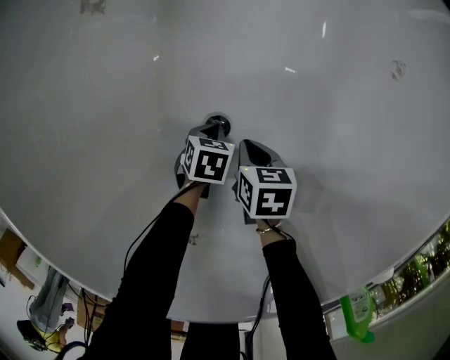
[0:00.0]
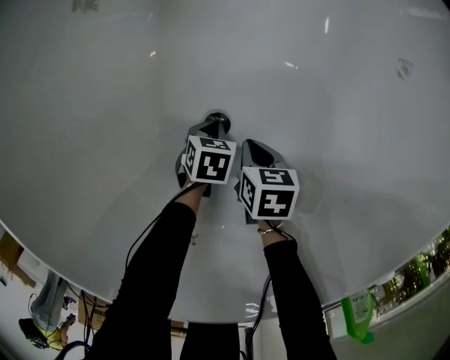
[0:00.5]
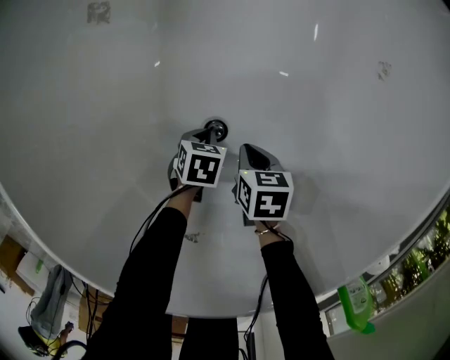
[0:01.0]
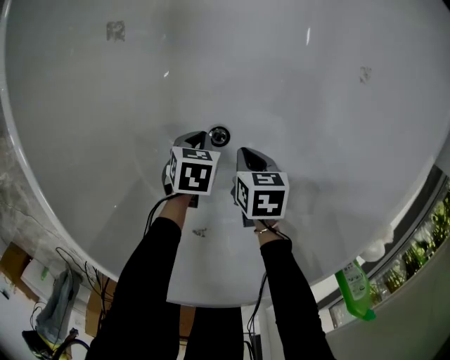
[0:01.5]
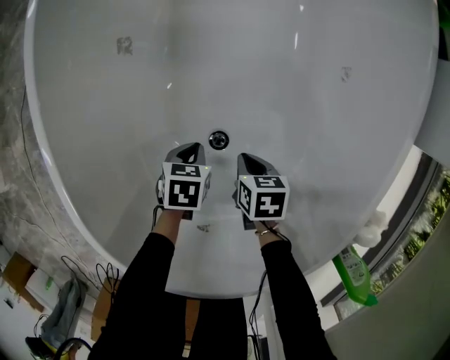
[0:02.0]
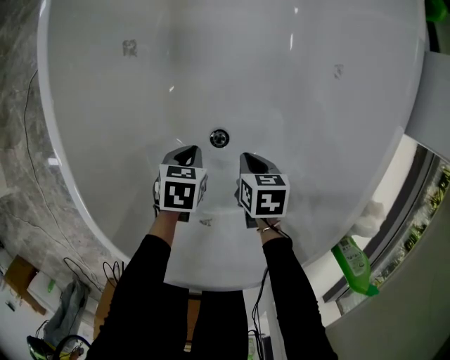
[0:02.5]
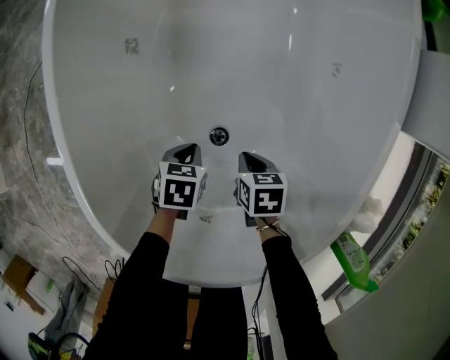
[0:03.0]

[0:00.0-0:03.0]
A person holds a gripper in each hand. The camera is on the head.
0:00.0 to 0:01.5: The left gripper moves upward, about 10 cm. Meanwhile the right gripper is displaced upward by roughly 5 cm.
0:01.5 to 0:03.0: The left gripper moves upward, about 10 cm, while the right gripper goes approximately 5 cm upward.

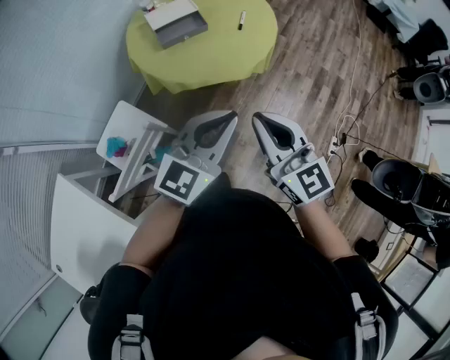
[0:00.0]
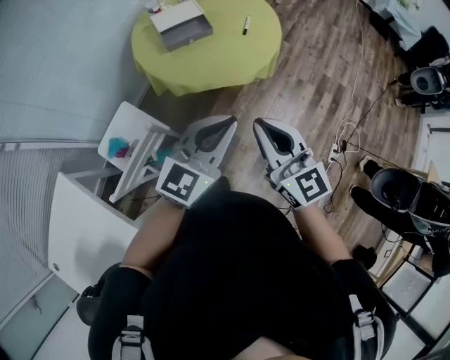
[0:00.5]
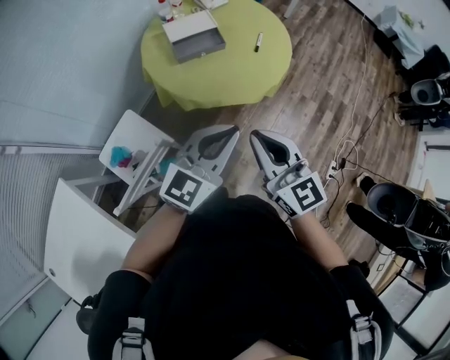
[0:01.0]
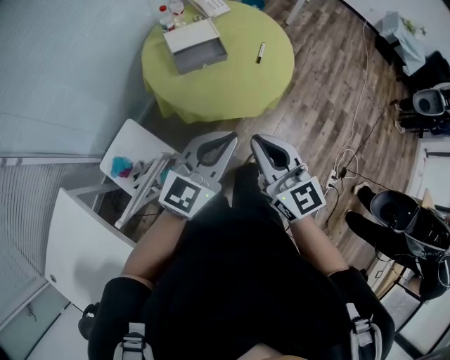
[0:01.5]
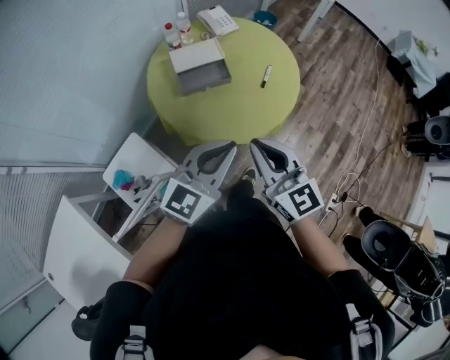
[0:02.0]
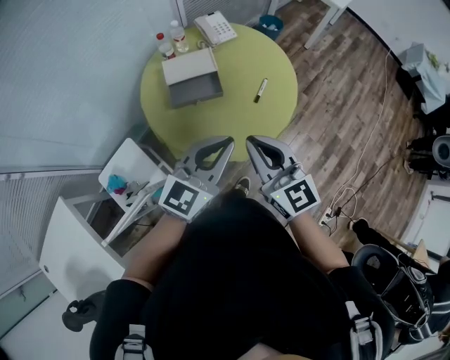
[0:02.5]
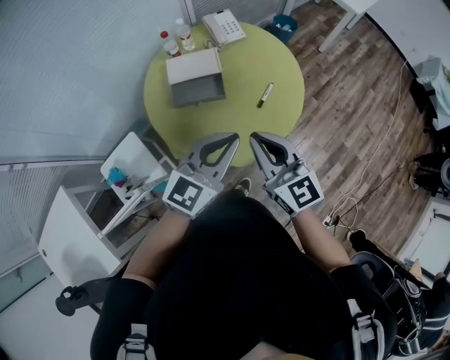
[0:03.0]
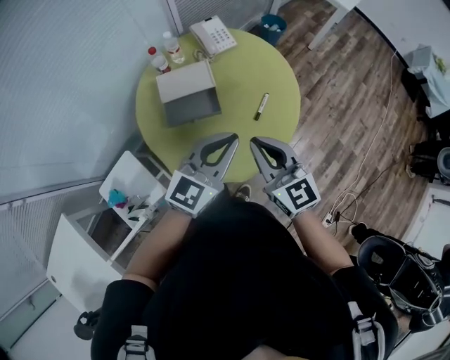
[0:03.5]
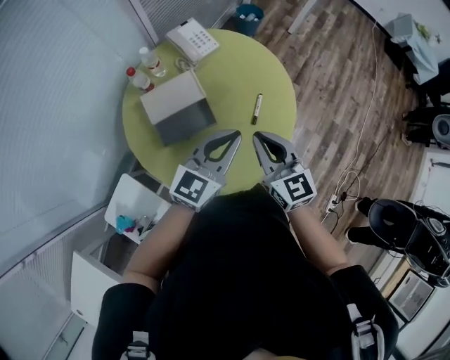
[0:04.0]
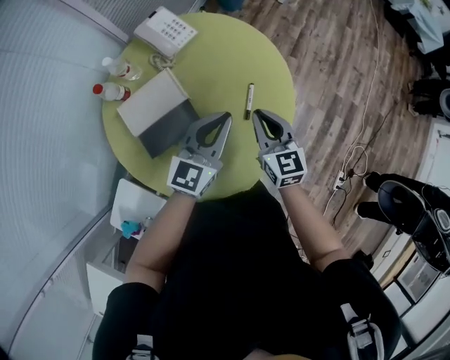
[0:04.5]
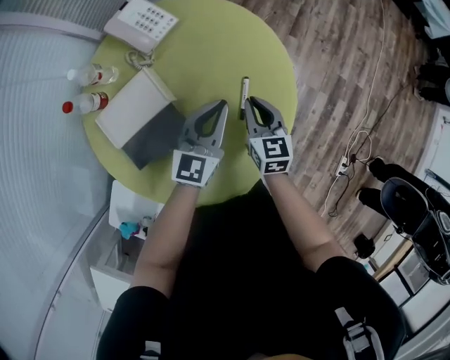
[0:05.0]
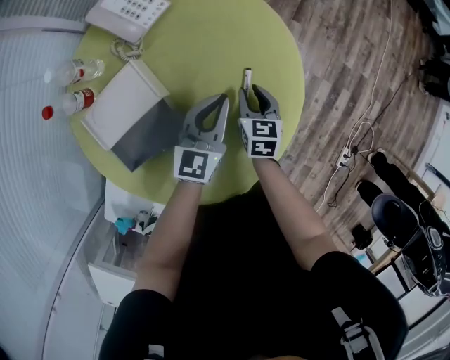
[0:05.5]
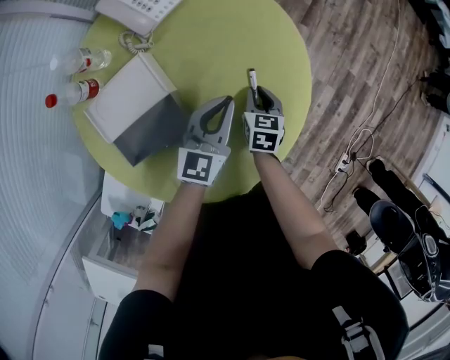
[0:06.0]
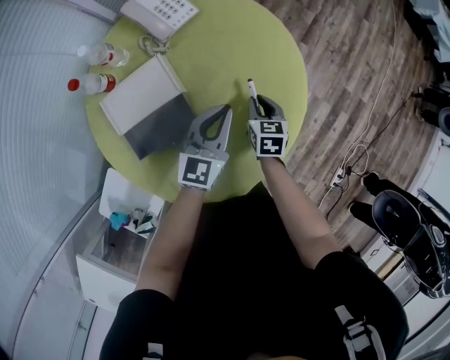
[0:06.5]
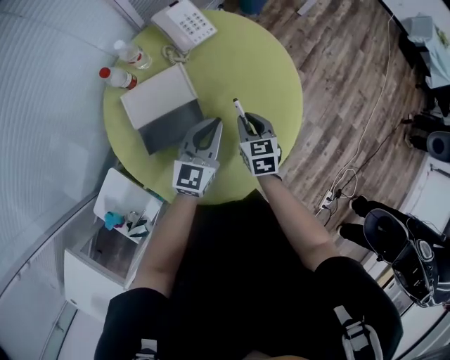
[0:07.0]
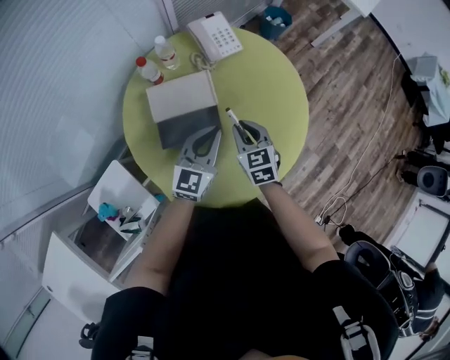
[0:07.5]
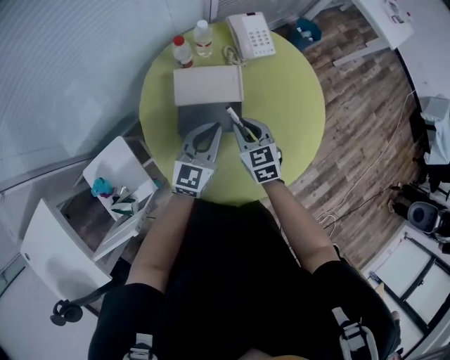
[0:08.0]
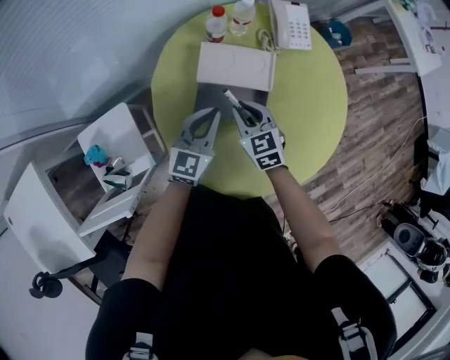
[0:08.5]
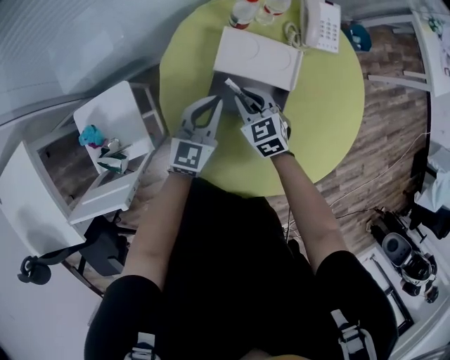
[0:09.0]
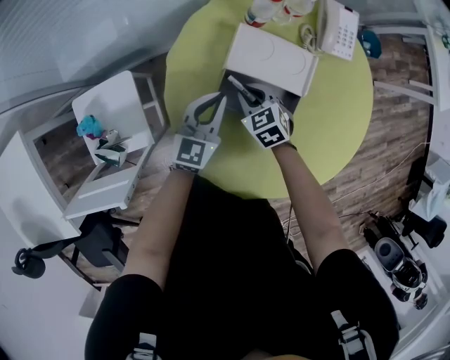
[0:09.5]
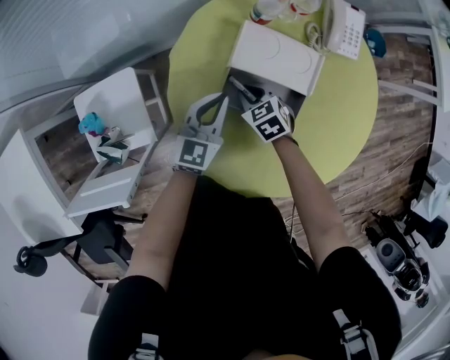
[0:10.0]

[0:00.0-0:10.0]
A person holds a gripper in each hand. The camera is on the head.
0:00.0 to 0:02.0: The two grippers go about 20 cm forward.
0:02.0 to 0:04.0: Both grippers move forward, about 30 cm.
0:04.0 to 0:06.0: The two grippers go roughly 35 cm downward and forward. The right gripper tilts its fingers some 30 degrees downward.
0:06.0 to 0:08.0: The right gripper moves roughly 30 cm, and rotates some 60 degrees, while the left gripper moves roughly 25 cm, and turns by some 20 degrees.
0:08.0 to 0:10.0: The right gripper goes roughly 20 cm downward, and rotates about 40 degrees. The left gripper ends up about 20 cm from where it was, and swivels about 20 degrees.

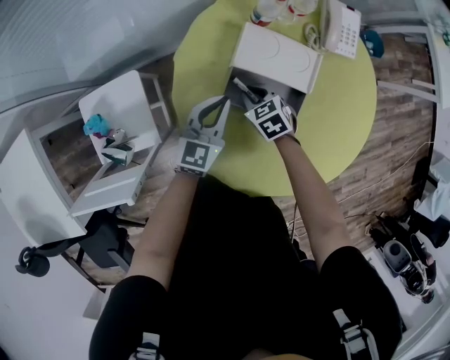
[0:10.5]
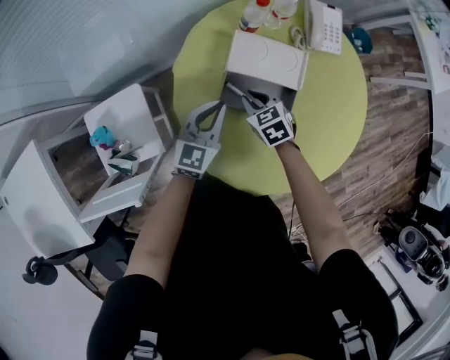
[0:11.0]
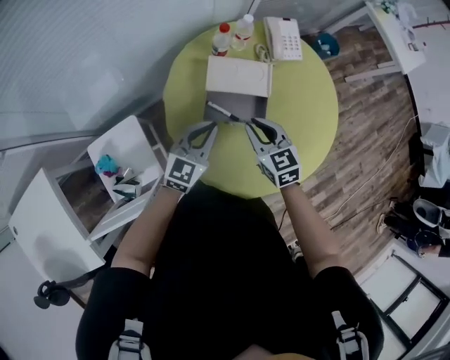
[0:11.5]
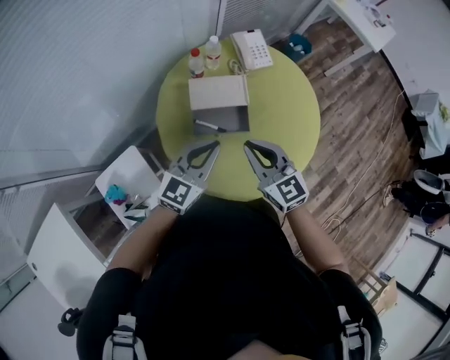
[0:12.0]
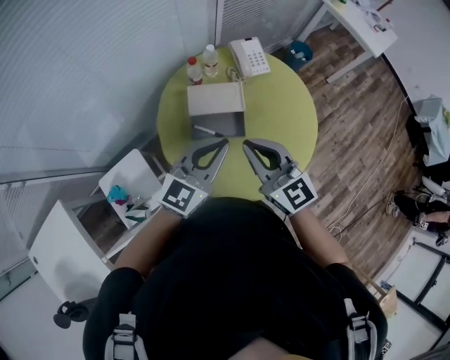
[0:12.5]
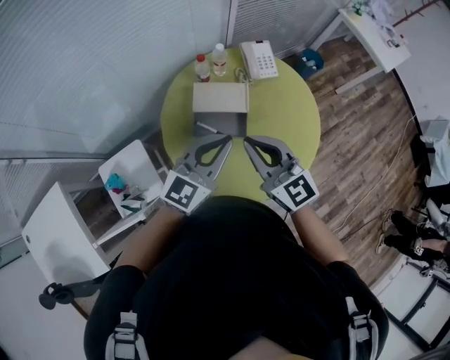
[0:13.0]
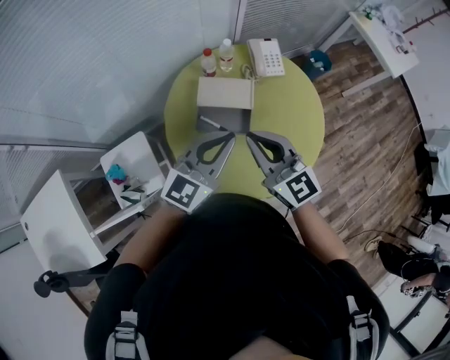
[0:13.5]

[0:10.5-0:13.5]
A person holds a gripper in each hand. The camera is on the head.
0:10.5 to 0:12.0: The left gripper is displaced upward by about 25 cm, and turns by roughly 30 degrees; the right gripper travels upward by some 35 cm, and points its fingers about 40 degrees further upward.
0:12.0 to 0:13.5: The left gripper travels upward and to the right by about 10 cm. Meanwhile the right gripper moves upward, some 10 cm.

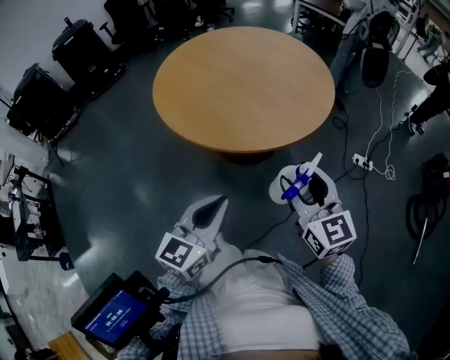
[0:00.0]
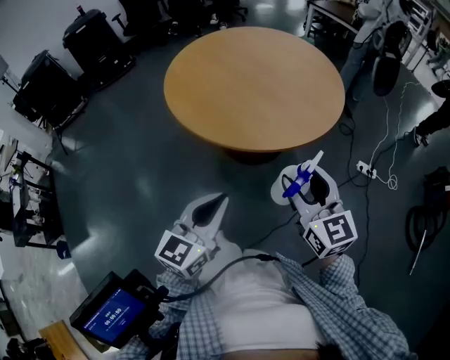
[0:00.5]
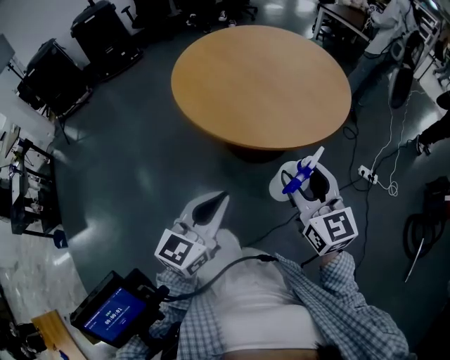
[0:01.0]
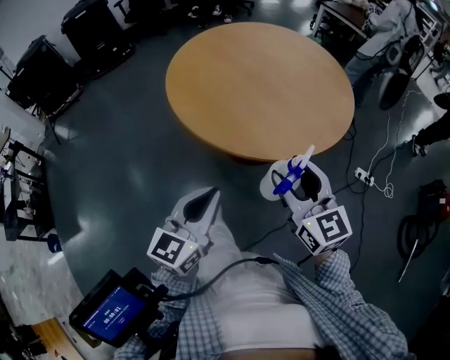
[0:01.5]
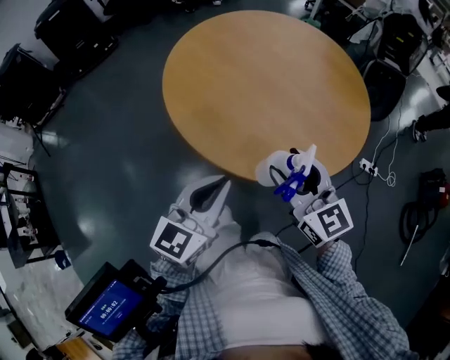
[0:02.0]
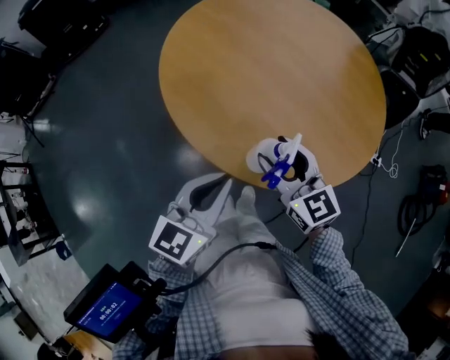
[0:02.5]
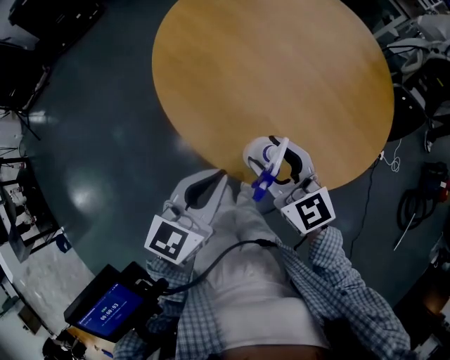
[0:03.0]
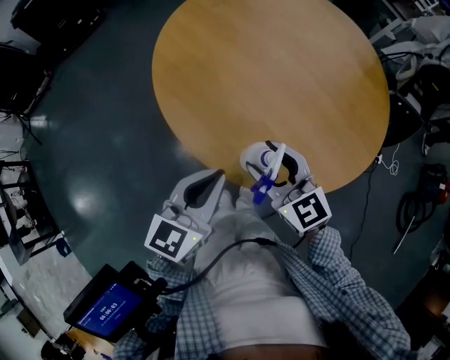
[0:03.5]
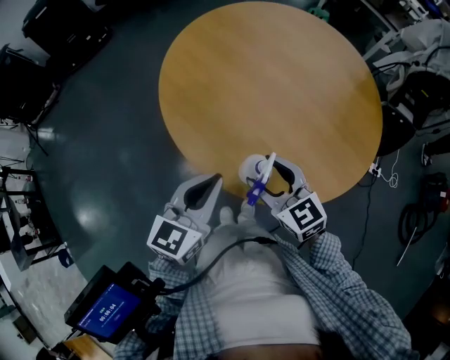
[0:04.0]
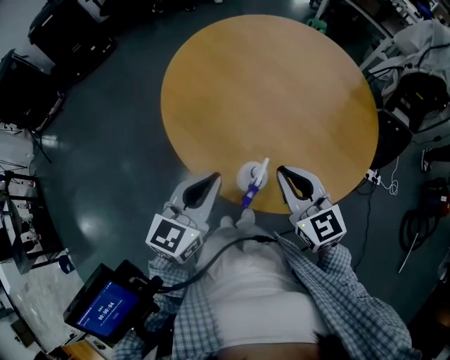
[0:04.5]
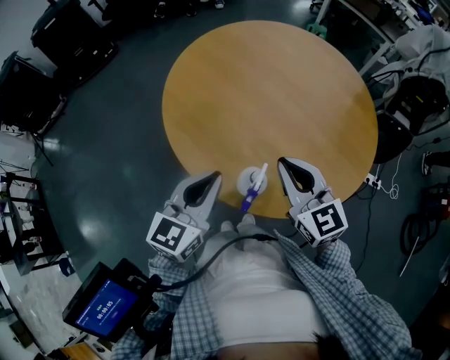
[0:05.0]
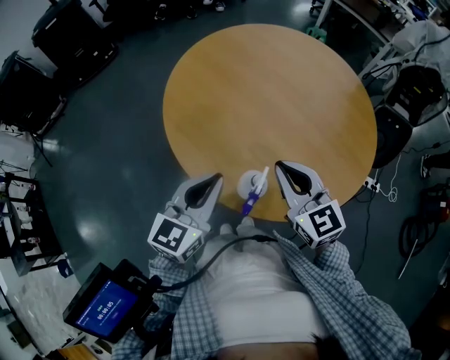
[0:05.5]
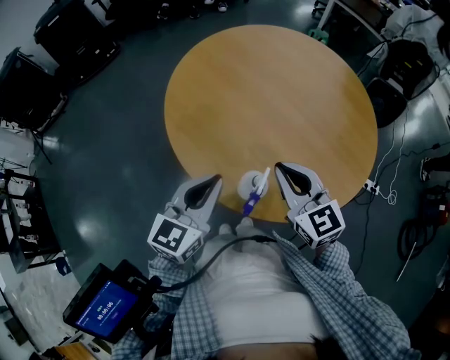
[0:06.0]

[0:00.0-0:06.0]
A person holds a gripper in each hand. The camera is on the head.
0:00.0 to 0:02.0: Both grippers travel together forward and to the left, some 20 cm.
0:02.0 to 0:04.0: The right gripper shifts some 10 cm downward and forward. The left gripper moves forward, roughly 10 cm.
0:04.0 to 0:06.0: The right gripper shifts approximately 5 cm upward, and closes up.

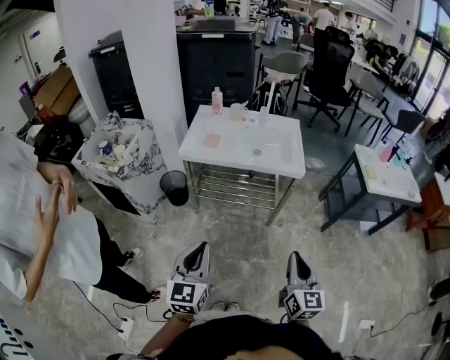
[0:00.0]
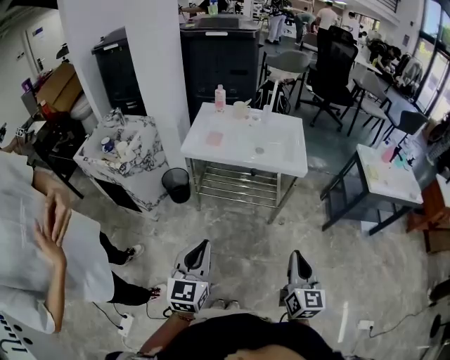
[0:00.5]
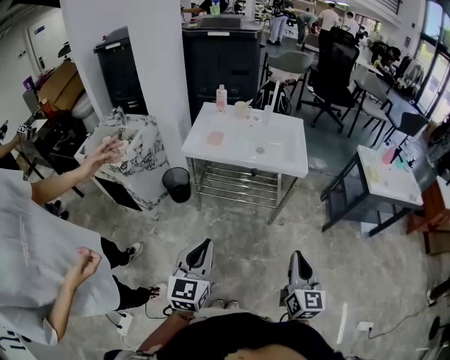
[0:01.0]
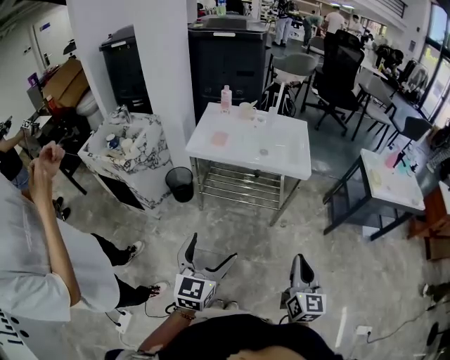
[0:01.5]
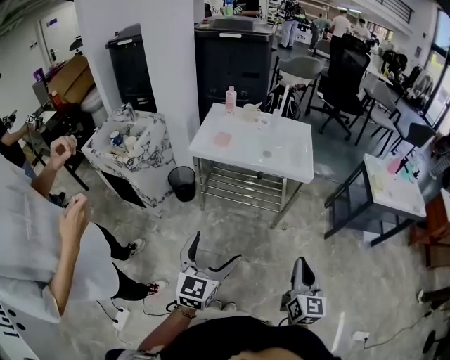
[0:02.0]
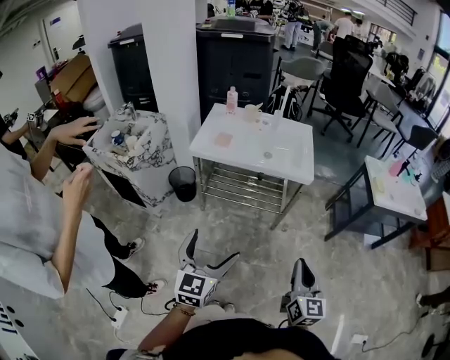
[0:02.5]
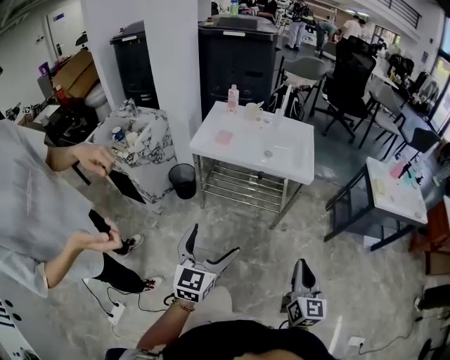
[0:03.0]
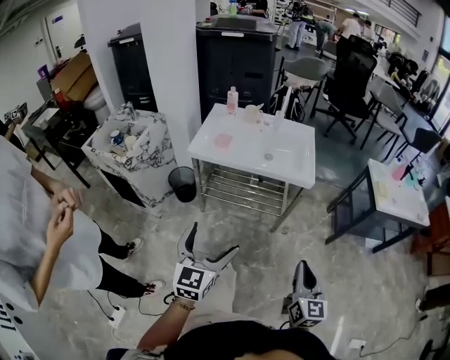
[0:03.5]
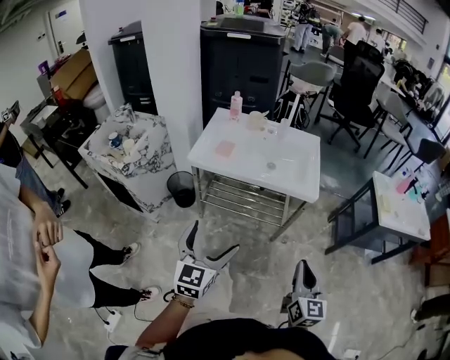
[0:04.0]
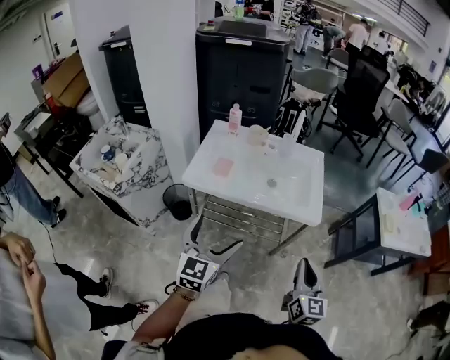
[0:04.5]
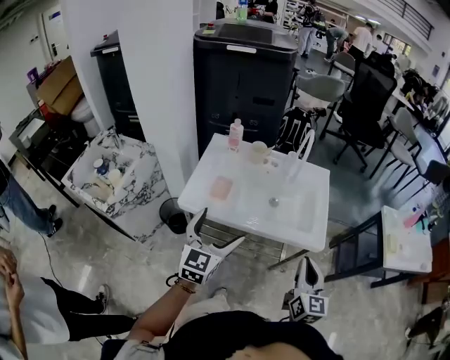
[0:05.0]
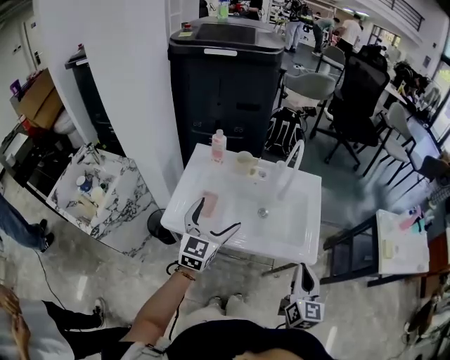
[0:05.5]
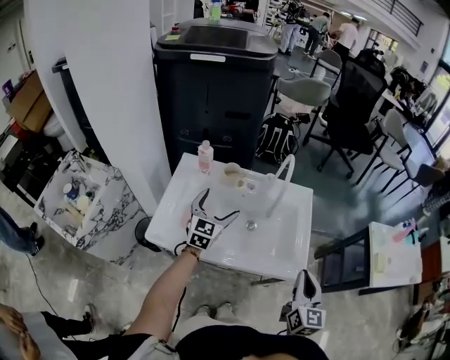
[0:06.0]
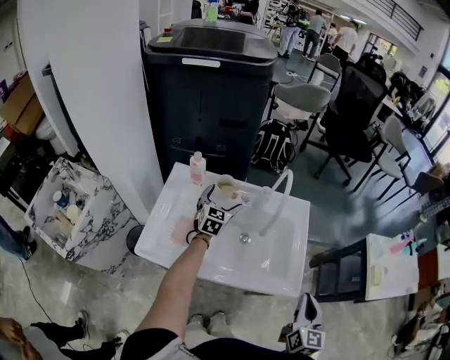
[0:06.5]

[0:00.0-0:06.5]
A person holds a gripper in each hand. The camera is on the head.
0:00.0 to 0:02.0: The left gripper opens.
0:02.0 to 0:04.5: The grippers both shift forward by roughly 25 cm.
0:04.5 to 0:06.5: The left gripper is displaced forward by some 60 cm. The right gripper shifts some 25 cm forward.
